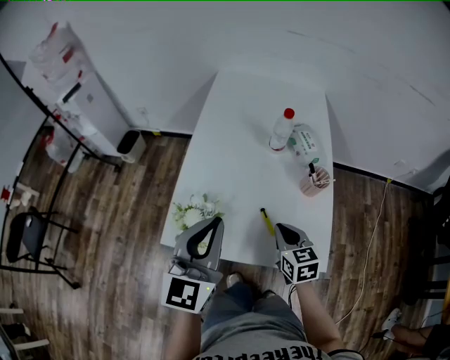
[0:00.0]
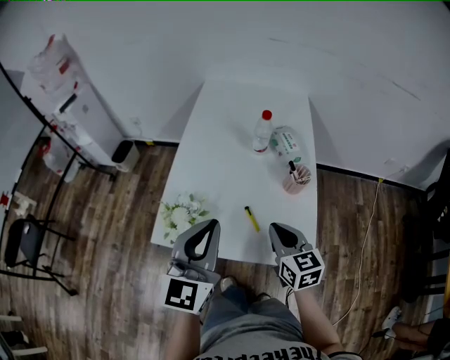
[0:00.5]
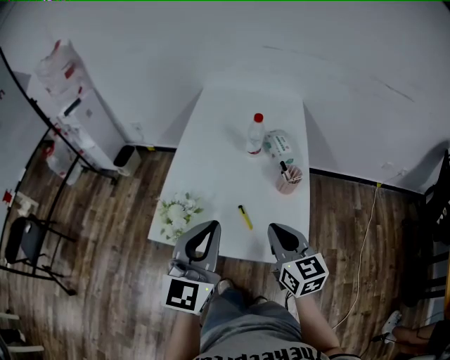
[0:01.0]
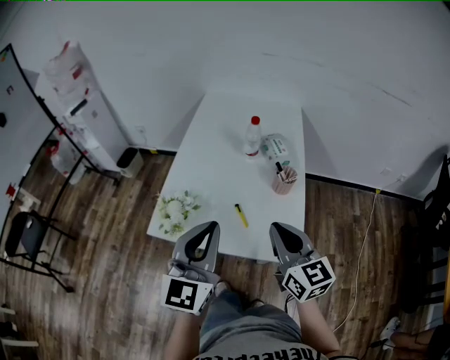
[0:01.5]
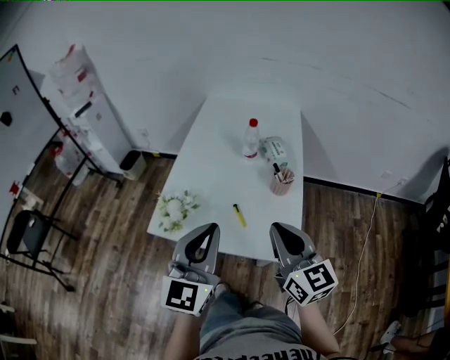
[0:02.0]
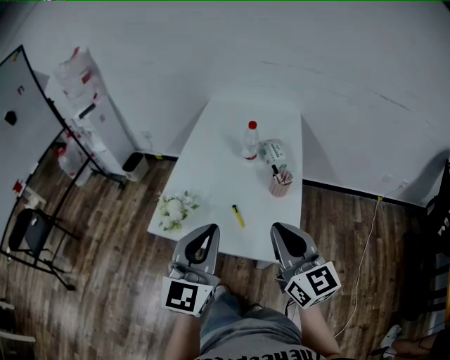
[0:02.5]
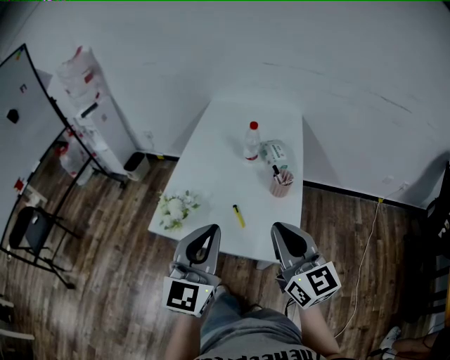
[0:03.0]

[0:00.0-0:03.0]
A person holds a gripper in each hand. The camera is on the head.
0.0 to 1.5 s: The left gripper heads backward and to the right, covering about 10 cm, while the right gripper heads upward and backward, covering approximately 20 cm, and rotates approximately 30 degrees.
1.5 to 3.0 s: The right gripper heads upward, covering roughly 5 cm.

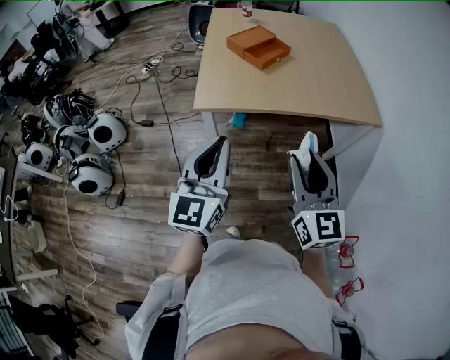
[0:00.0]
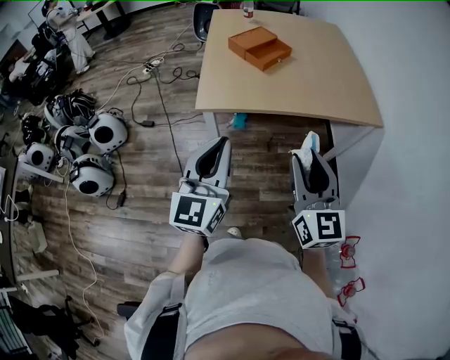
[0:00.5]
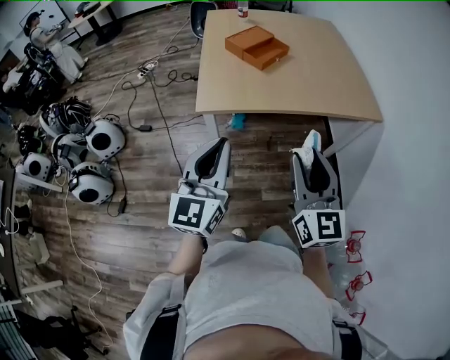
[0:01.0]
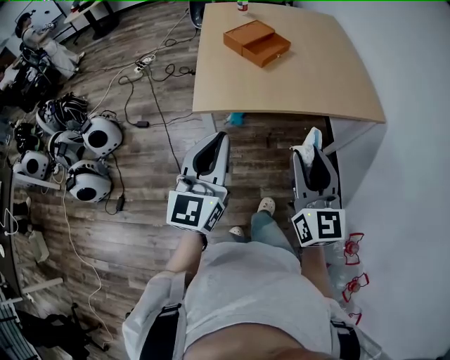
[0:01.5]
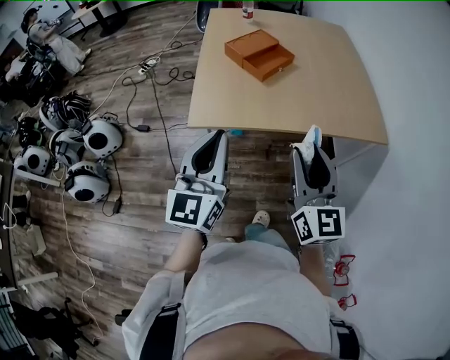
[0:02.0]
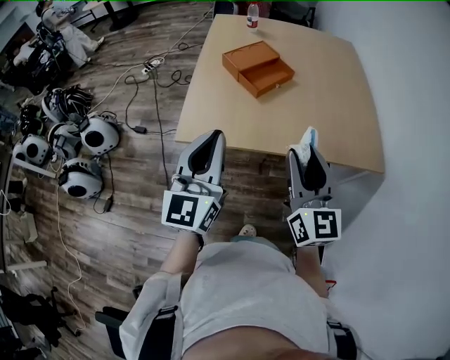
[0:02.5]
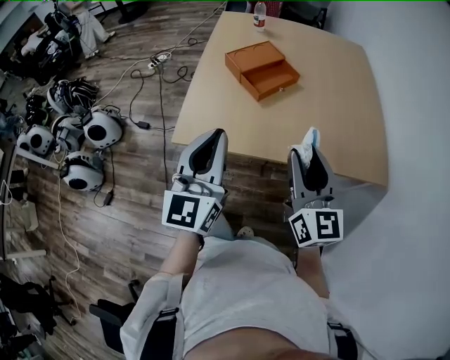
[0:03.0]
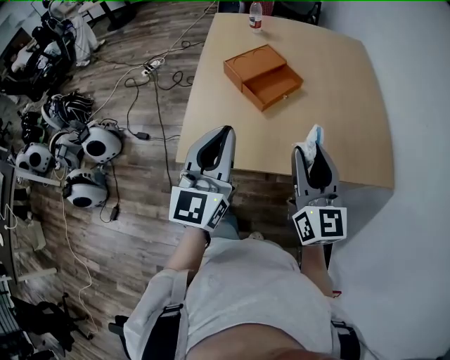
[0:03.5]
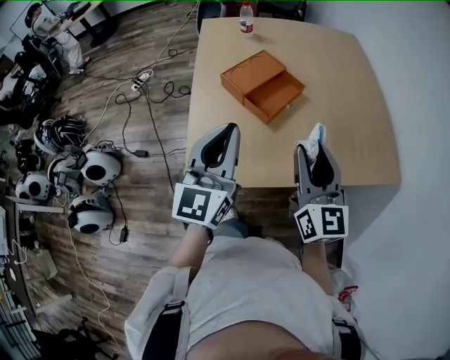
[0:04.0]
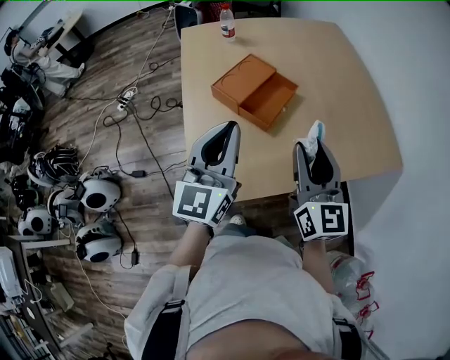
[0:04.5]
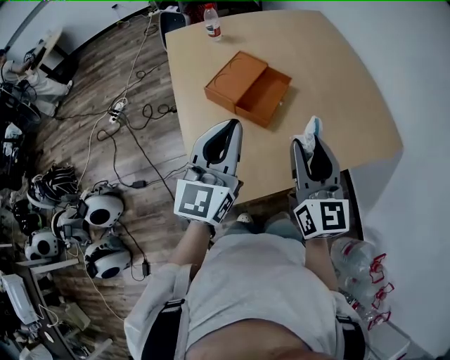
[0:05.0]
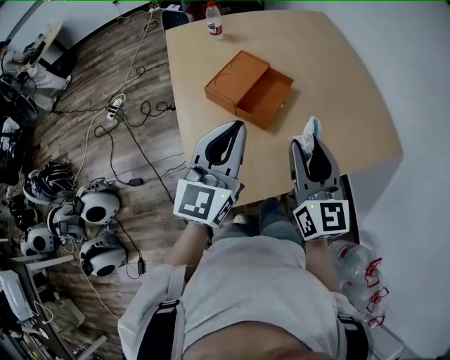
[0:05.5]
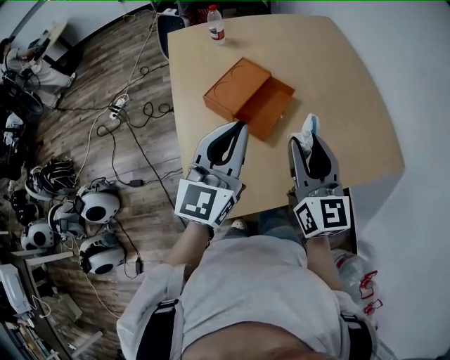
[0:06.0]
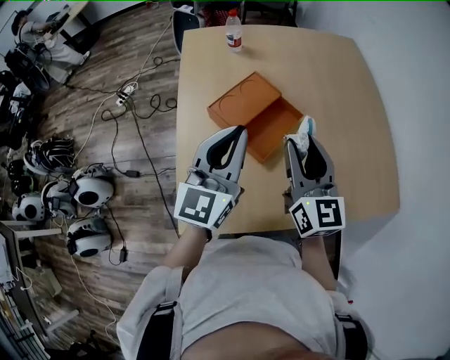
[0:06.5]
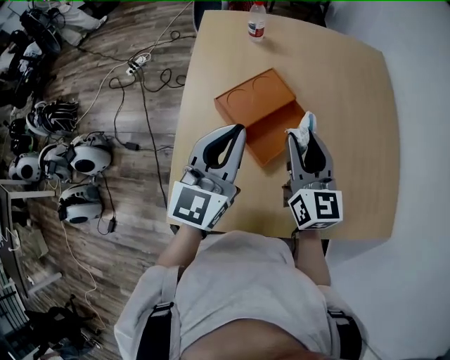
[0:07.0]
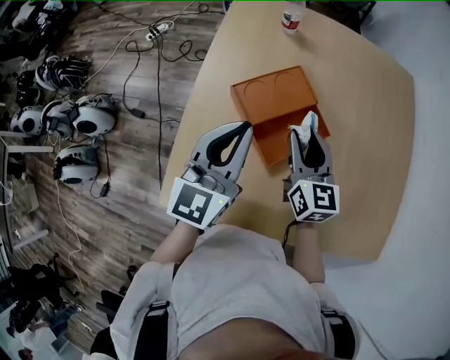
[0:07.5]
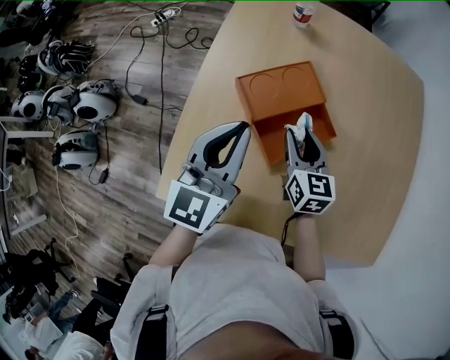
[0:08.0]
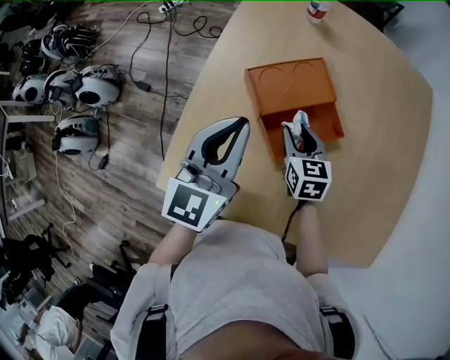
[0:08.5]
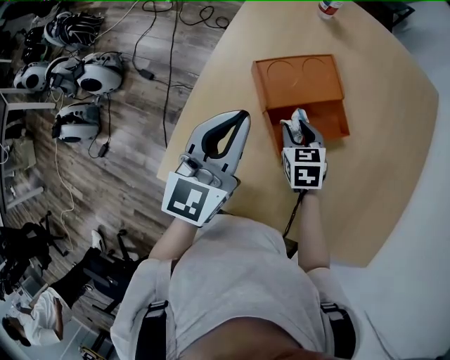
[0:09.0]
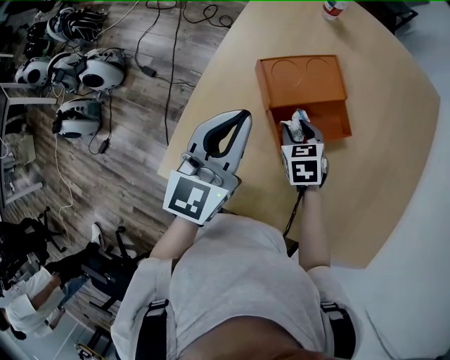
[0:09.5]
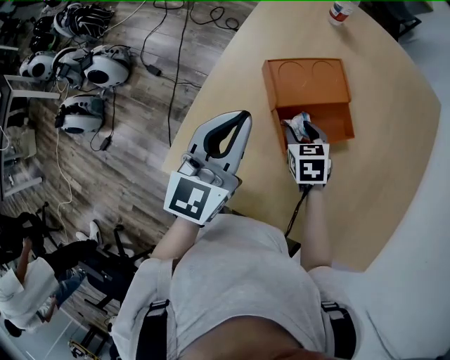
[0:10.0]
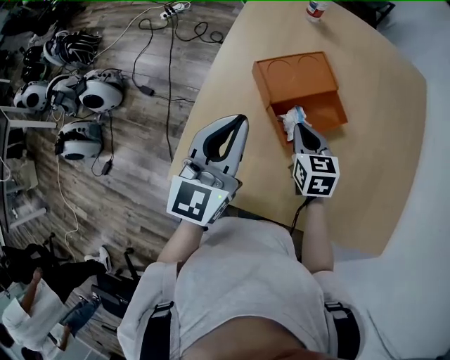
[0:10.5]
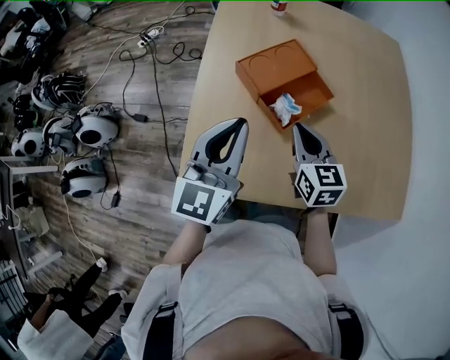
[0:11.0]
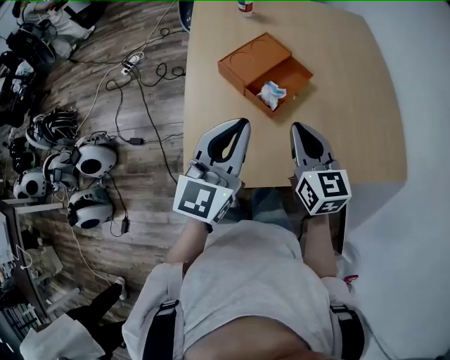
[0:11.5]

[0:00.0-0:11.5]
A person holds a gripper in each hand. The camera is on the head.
0.0 to 2.0 s: The two grippers go approximately 10 cm forward.
2.0 to 4.0 s: Both grippers move forward, roughly 25 cm.
4.0 to 6.0 s: Both grippers move forward, some 10 cm.
6.0 to 7.5 s: The right gripper travels forward and downward by some 25 cm, and swivels roughly 30 degrees. The left gripper travels forward by approximately 10 cm, and rotates about 20 degrees.
7.5 to 9.5 s: The right gripper shifts approximately 15 cm downward, and points its fingers about 40 degrees further downward. The left gripper moves to the left, about 5 cm.
9.5 to 11.5 s: The left gripper moves approximately 15 cm, and changes its angle by approximately 30 degrees; the right gripper shifts some 20 cm upward, tilts its fingers approximately 40 degrees upward, and closes.

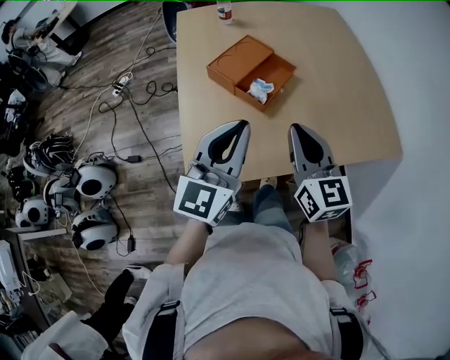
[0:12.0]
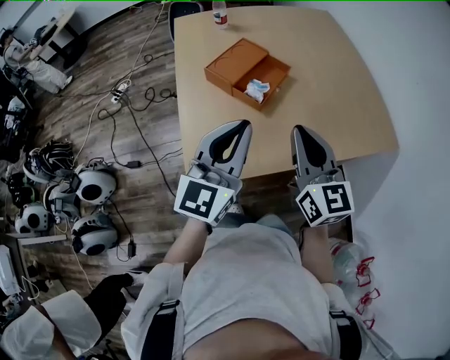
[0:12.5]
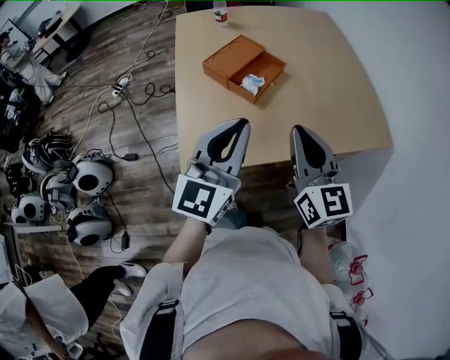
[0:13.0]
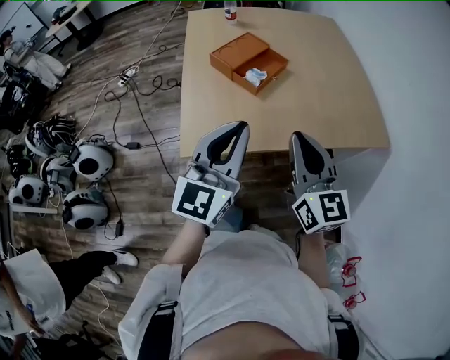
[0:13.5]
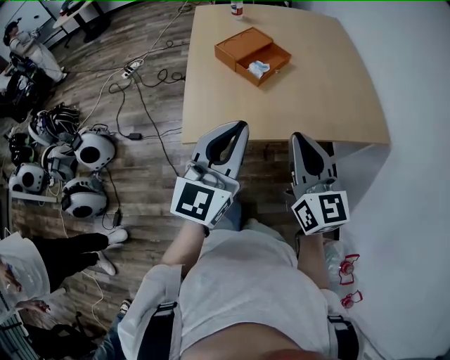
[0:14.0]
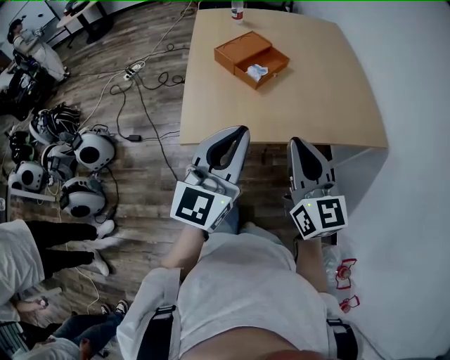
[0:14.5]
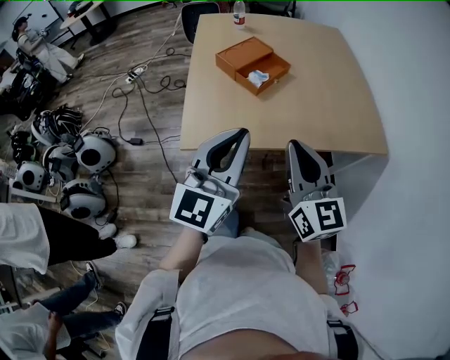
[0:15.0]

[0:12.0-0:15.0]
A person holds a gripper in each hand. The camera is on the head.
12.0 to 13.5 s: The grippers both shift backward by roughly 15 cm.
13.5 to 15.0 s: The left gripper travels backward by roughly 5 cm.

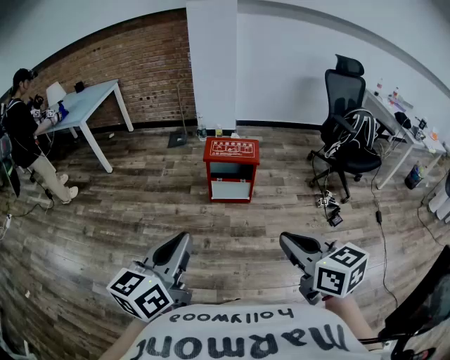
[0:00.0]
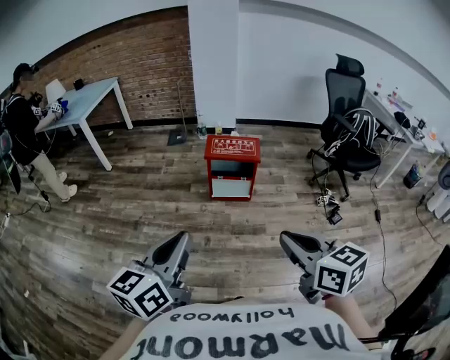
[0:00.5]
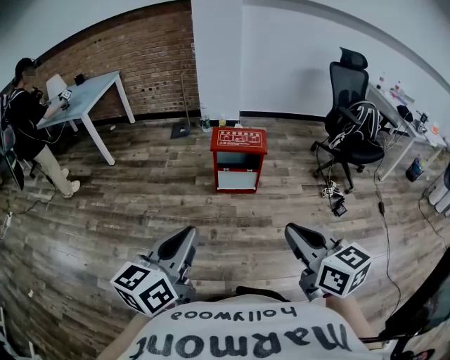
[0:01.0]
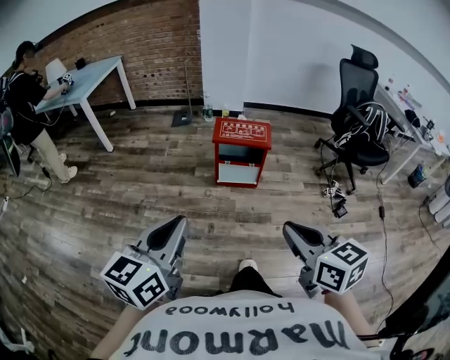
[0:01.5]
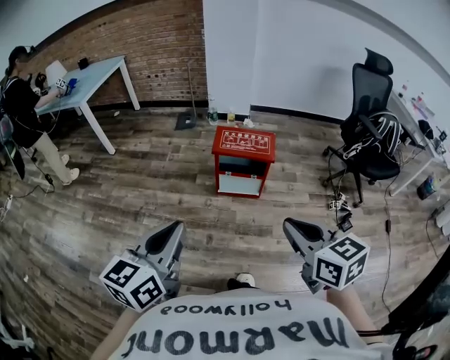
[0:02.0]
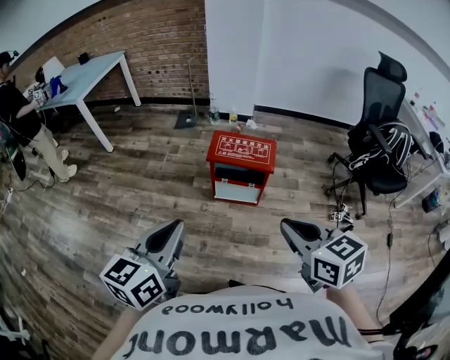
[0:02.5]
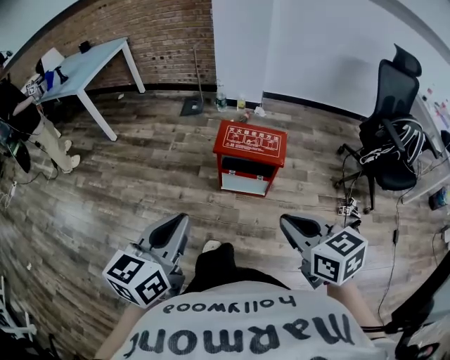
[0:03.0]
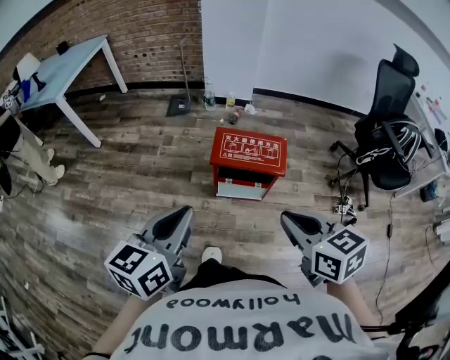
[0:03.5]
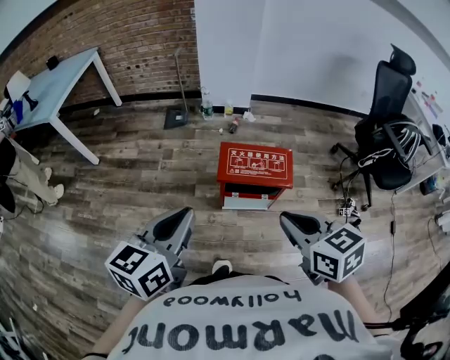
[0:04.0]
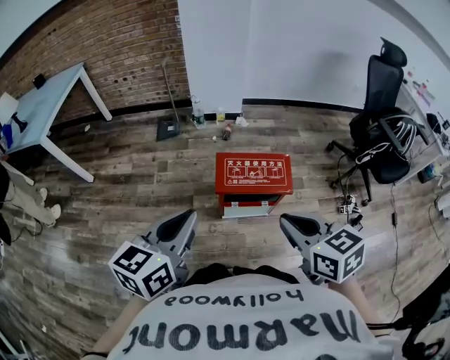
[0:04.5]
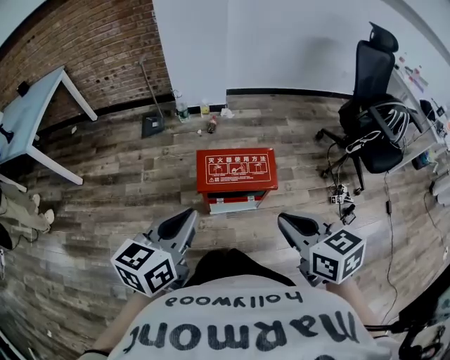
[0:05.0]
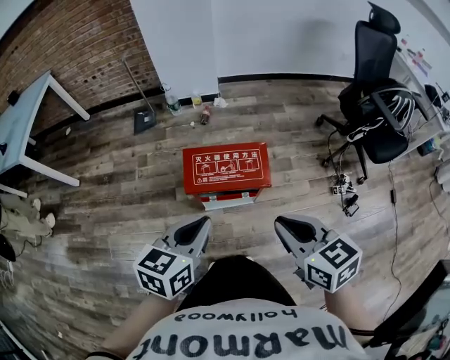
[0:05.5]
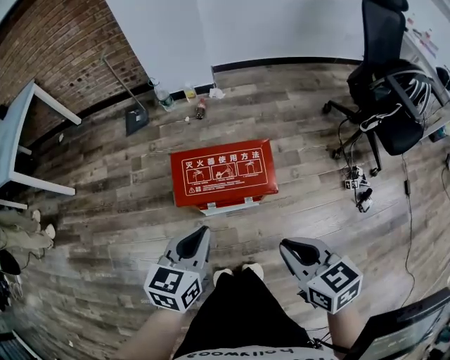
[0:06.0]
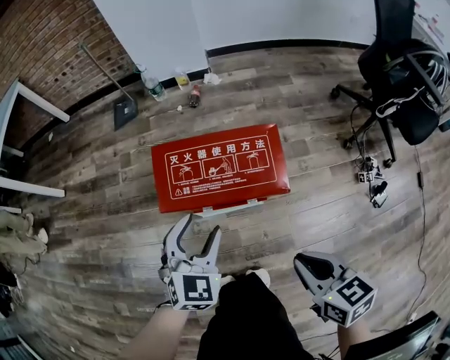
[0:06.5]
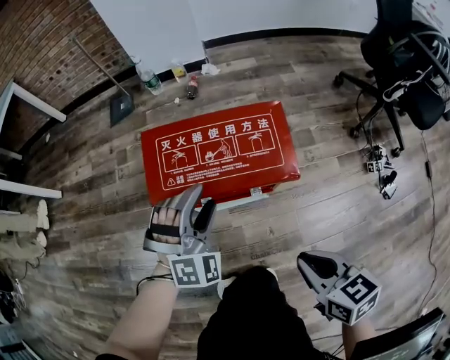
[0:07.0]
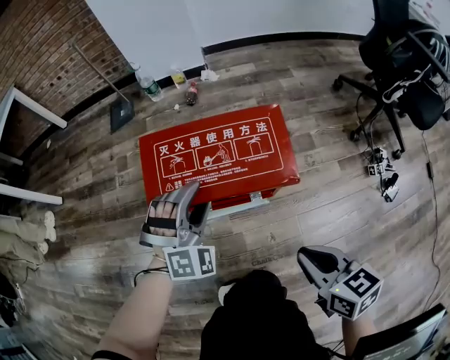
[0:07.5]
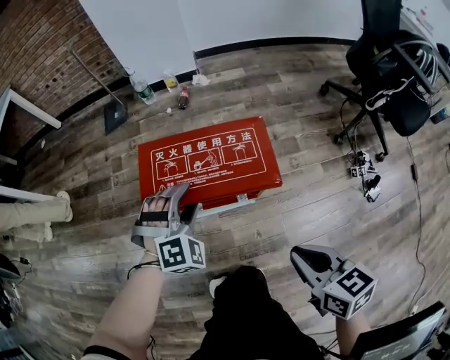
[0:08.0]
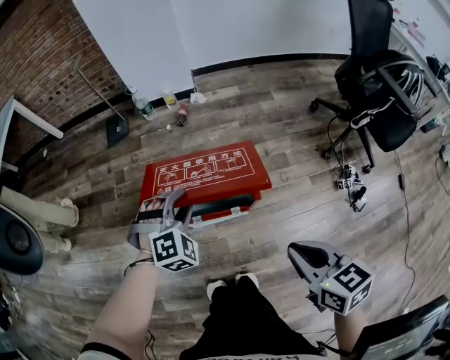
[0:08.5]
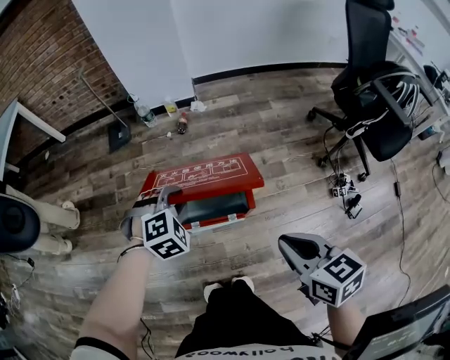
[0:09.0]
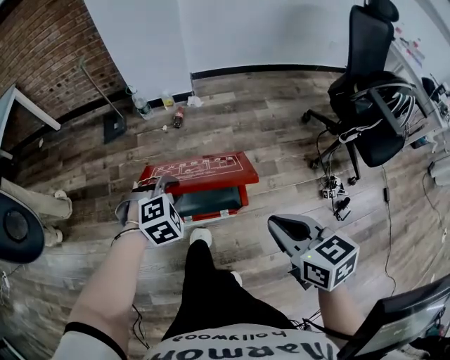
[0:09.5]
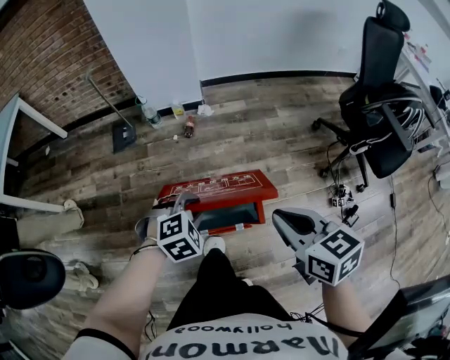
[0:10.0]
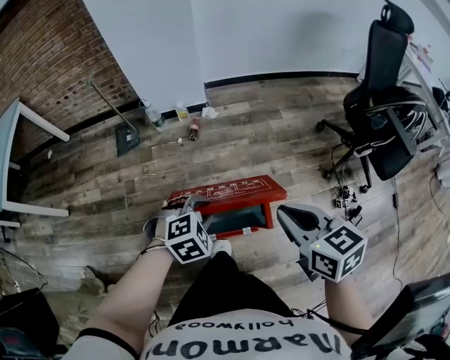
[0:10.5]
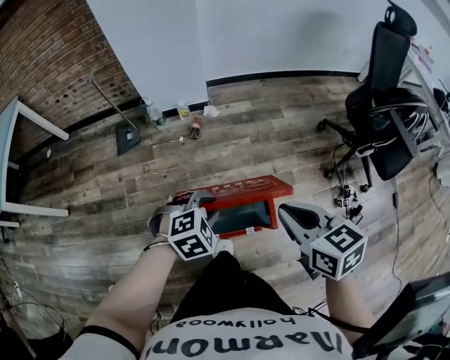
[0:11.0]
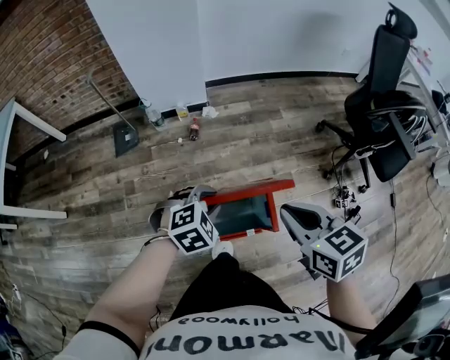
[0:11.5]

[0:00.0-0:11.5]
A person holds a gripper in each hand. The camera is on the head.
0.0 to 2.0 s: Both grippers move forward, some 15 cm.
2.0 to 4.0 s: The two grippers go roughly 30 cm forward.
4.0 to 6.0 s: Both grippers move downward, to the right and forward, about 25 cm.
6.0 to 7.5 s: The right gripper moves downward, about 20 cm, while the left gripper goes about 25 cm downward and forward, rolls clockwise, seen from behind, by approximately 80 degrees, and opens its fingers.
7.5 to 9.5 s: The right gripper goes approximately 25 cm upward and forward, while the left gripper shifts some 15 cm upward and forward, points its fingers about 30 degrees further downward, and closes up.
9.5 to 11.5 s: The left gripper travels forward by roughly 10 cm; the right gripper shifts some 15 cm forward and to the left.
